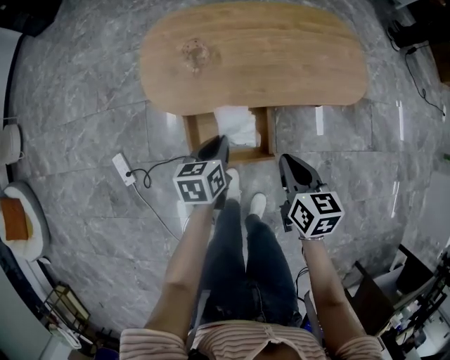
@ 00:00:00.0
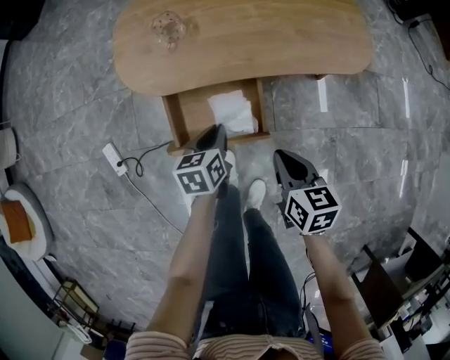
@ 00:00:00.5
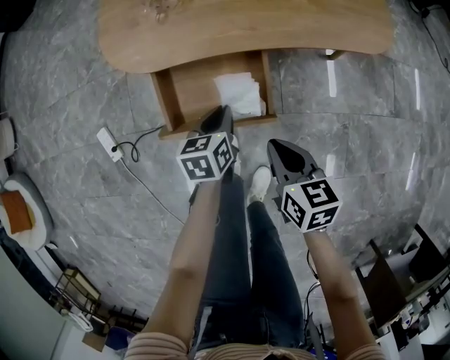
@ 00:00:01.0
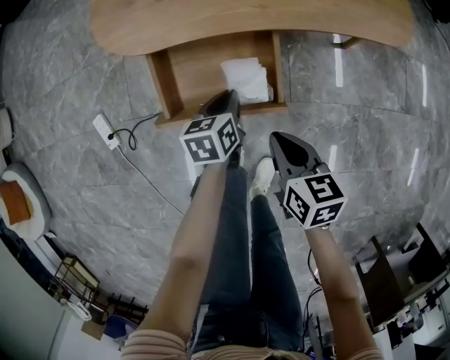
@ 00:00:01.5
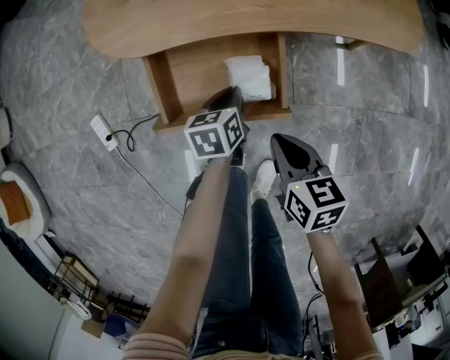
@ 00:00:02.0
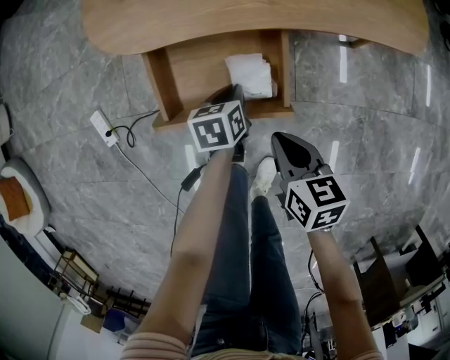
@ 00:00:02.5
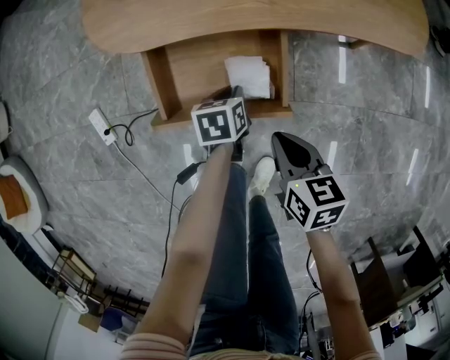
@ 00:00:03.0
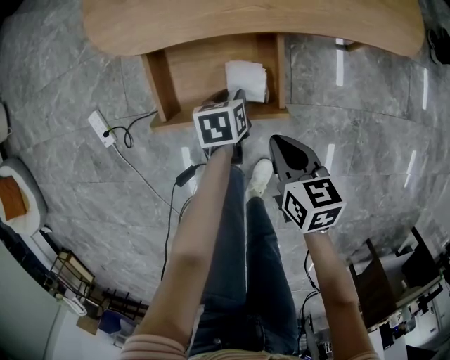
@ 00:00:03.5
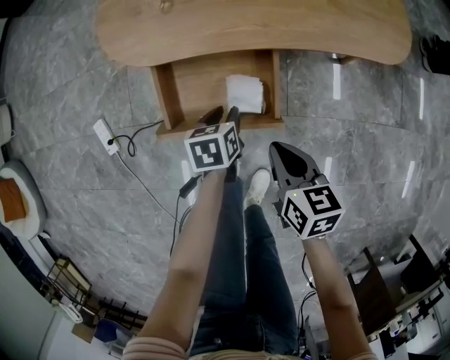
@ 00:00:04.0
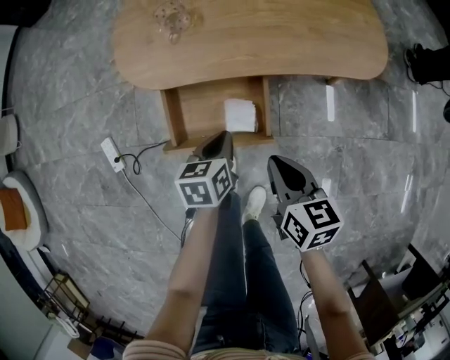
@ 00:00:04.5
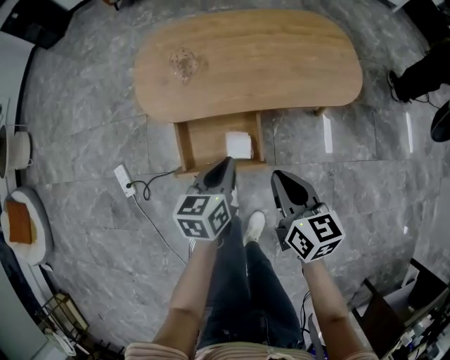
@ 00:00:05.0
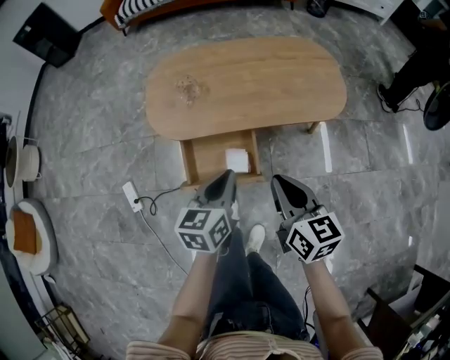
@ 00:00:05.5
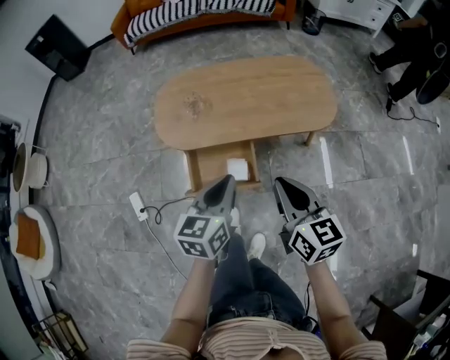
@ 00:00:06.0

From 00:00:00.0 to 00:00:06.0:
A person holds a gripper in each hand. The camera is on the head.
From 00:00:00.0 to 00:00:02.0: Both grippers travel together downward, about 25 cm.
From 00:00:02.0 to 00:00:04.0: There are only small adjustments of the grippers.
From 00:00:04.0 to 00:00:06.0: The grippers both shift upward by roughly 40 cm. The right gripper swivels approximately 30 degrees, while the left gripper tips its fingers upward by approximately 30 degrees, and closes up.

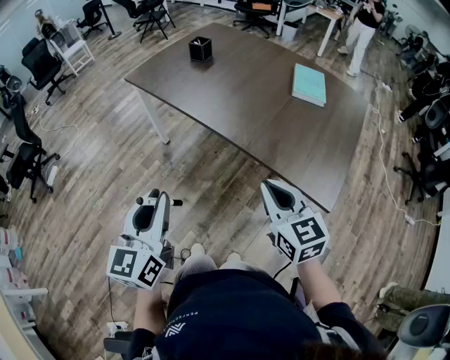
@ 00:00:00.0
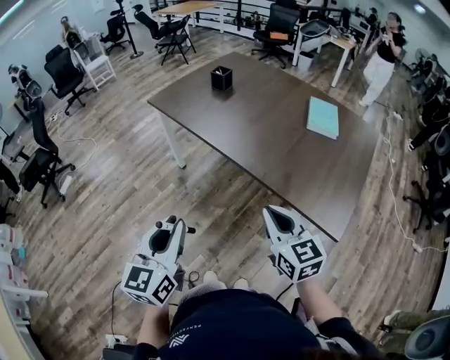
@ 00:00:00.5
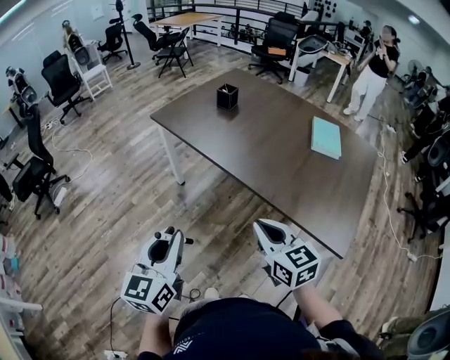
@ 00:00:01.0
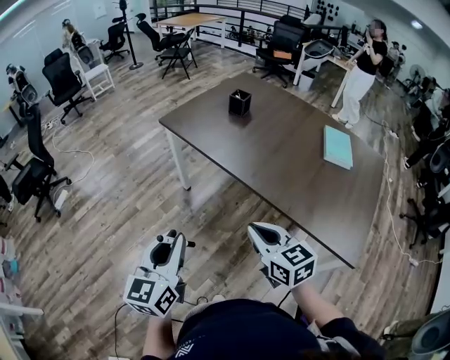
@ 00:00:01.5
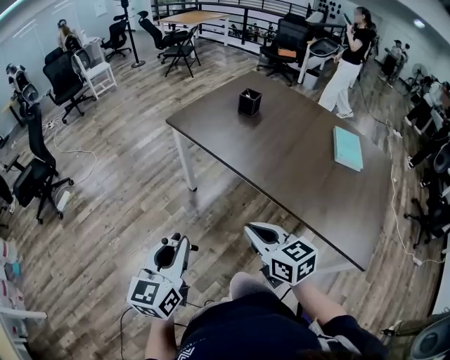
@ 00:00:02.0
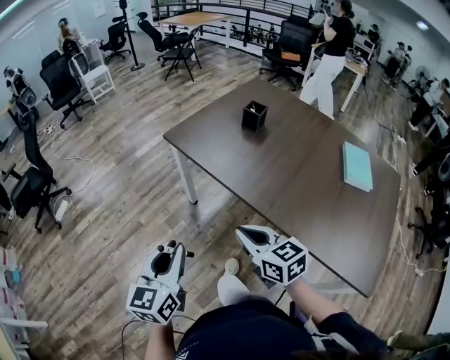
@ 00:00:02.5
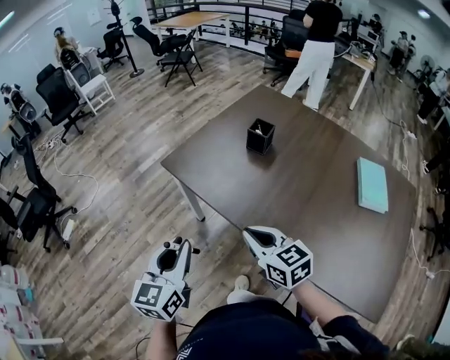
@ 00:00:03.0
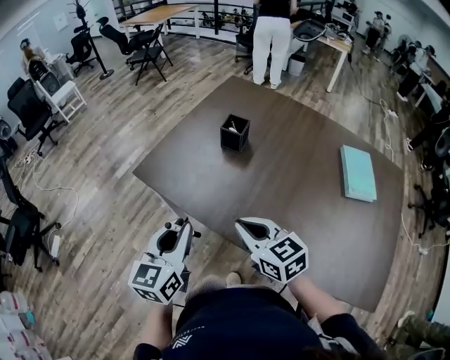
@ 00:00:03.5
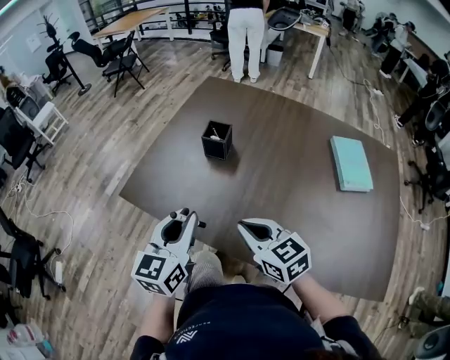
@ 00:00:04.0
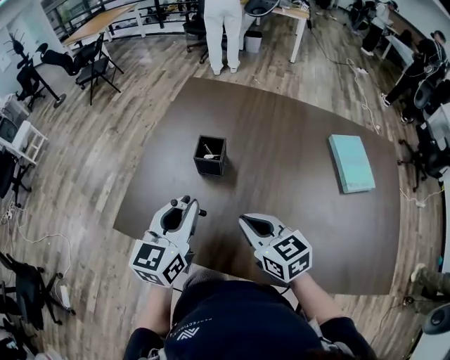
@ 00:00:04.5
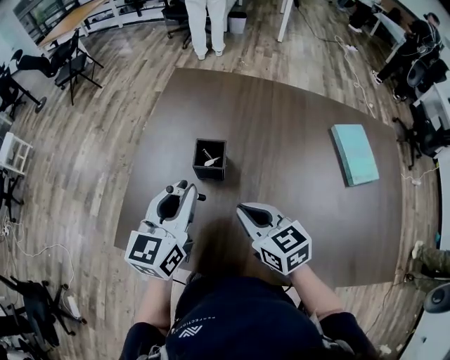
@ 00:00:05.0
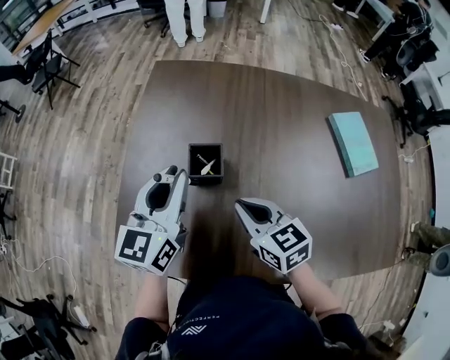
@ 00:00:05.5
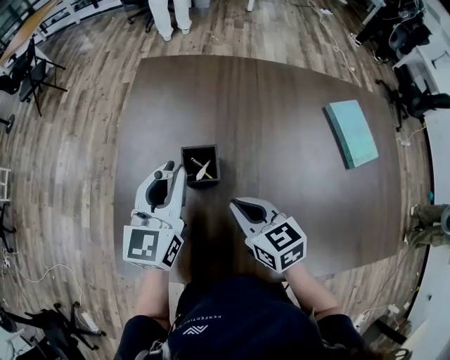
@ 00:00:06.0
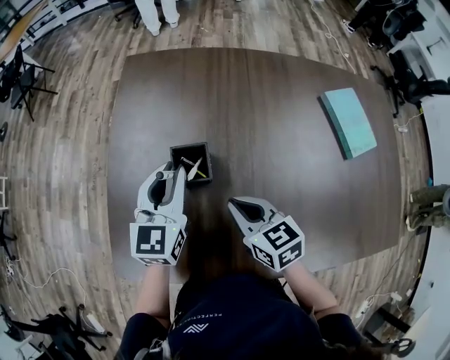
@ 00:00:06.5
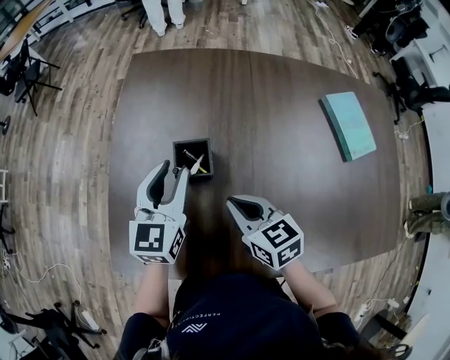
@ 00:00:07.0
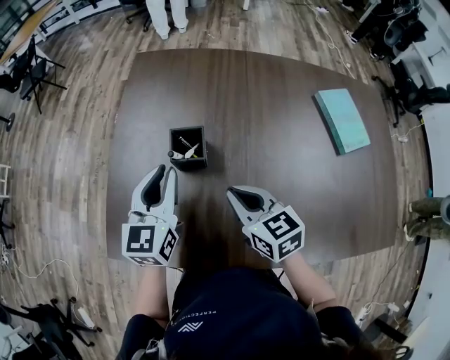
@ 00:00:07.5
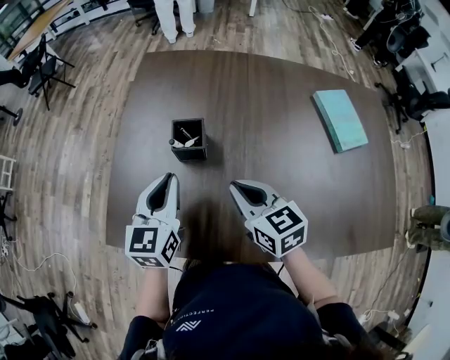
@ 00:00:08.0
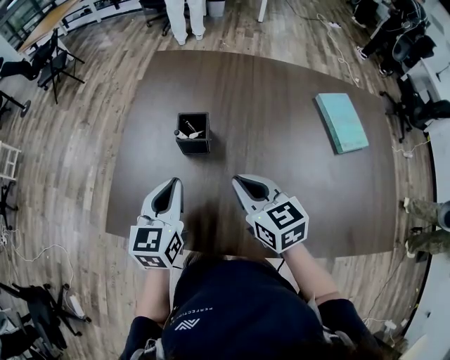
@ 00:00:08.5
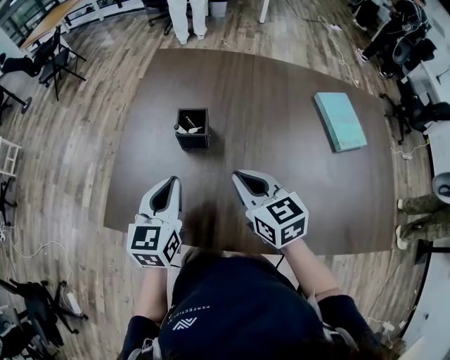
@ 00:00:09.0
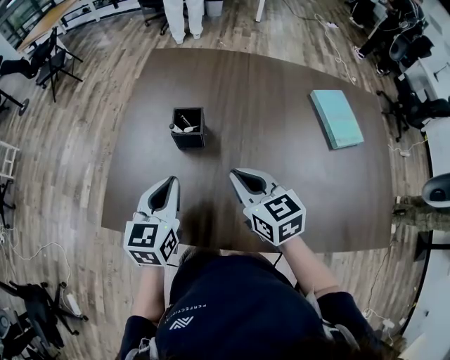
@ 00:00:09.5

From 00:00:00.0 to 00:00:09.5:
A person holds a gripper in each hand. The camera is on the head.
From 00:00:00.0 to 00:00:02.0: The two grippers go roughly 20 cm to the left and forward. The right gripper turns by some 20 degrees.
From 00:00:02.0 to 00:00:04.0: Both grippers move forward, roughly 35 cm. The left gripper rotates roughly 20 degrees.
From 00:00:04.0 to 00:00:05.5: Both grippers move forward, some 25 cm. The right gripper turns by approximately 20 degrees.
From 00:00:05.5 to 00:00:07.5: The left gripper moves downward, approximately 5 cm.
From 00:00:07.5 to 00:00:09.5: The right gripper changes place by roughly 5 cm. The left gripper travels backward by some 10 cm.

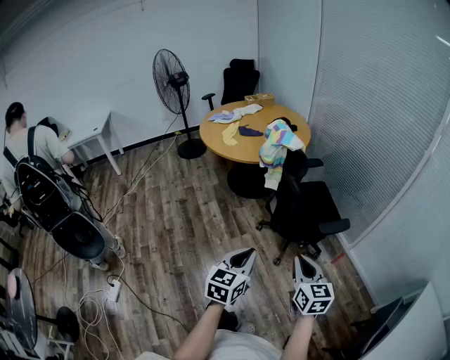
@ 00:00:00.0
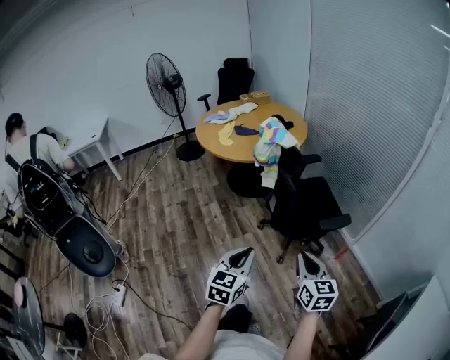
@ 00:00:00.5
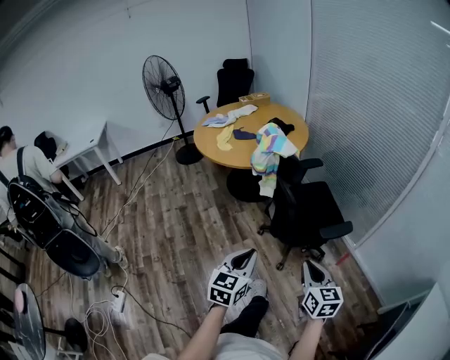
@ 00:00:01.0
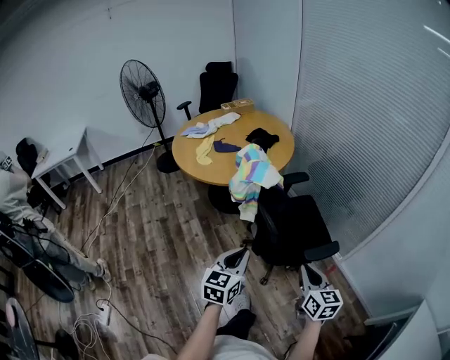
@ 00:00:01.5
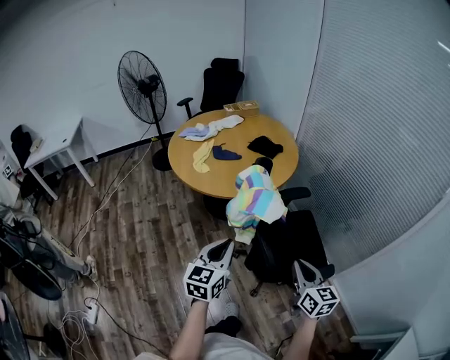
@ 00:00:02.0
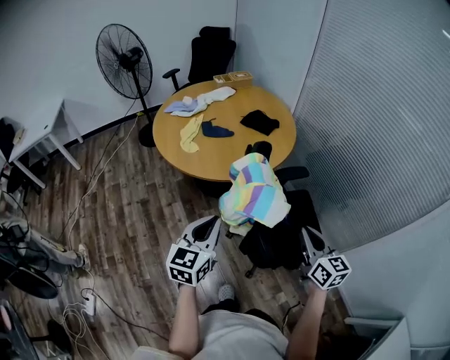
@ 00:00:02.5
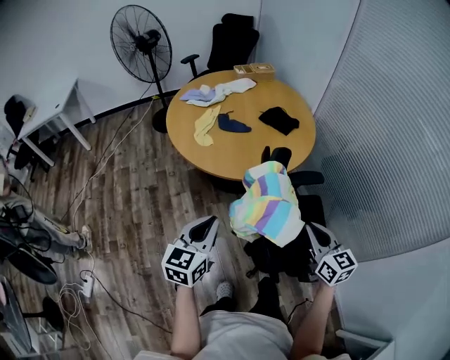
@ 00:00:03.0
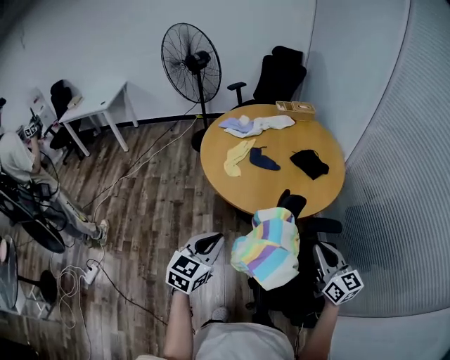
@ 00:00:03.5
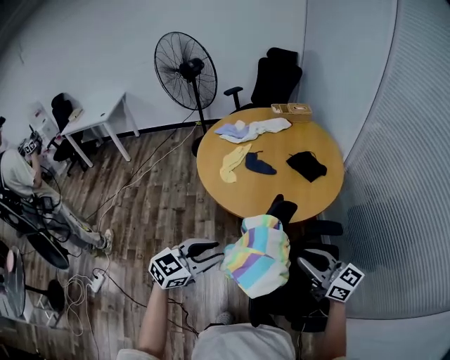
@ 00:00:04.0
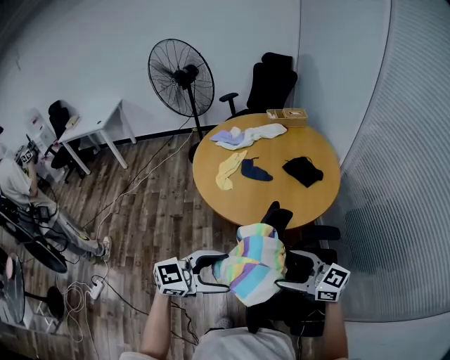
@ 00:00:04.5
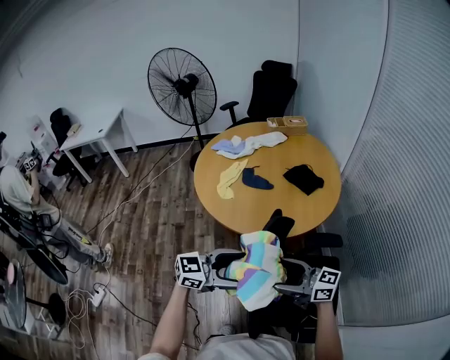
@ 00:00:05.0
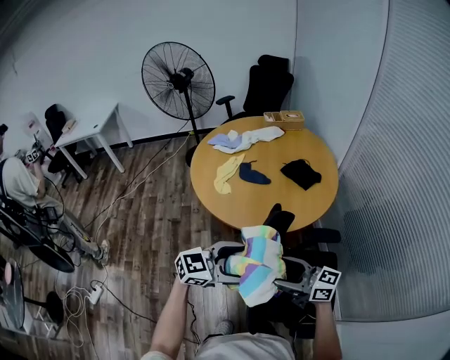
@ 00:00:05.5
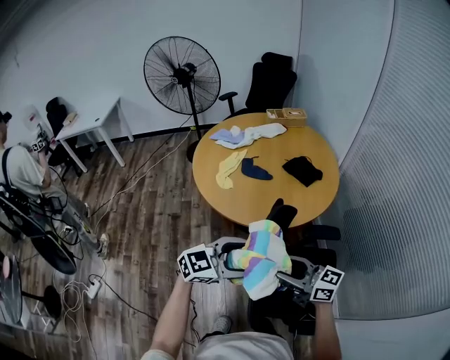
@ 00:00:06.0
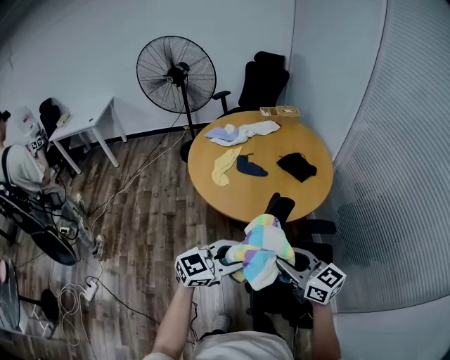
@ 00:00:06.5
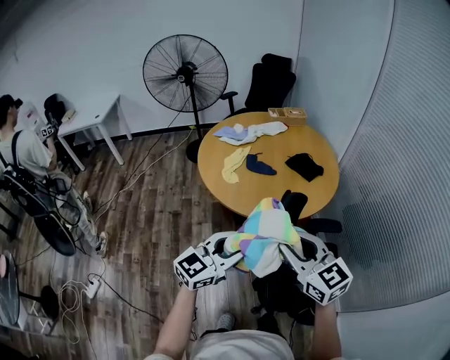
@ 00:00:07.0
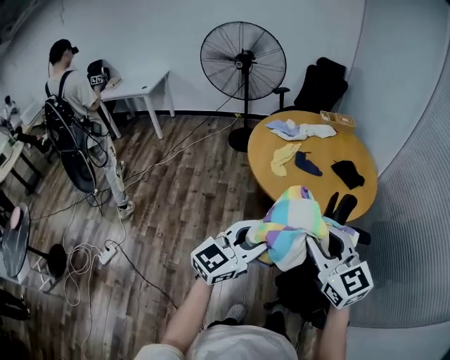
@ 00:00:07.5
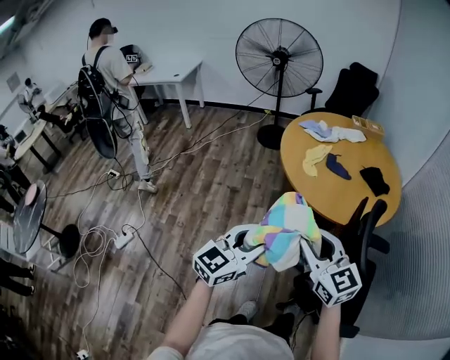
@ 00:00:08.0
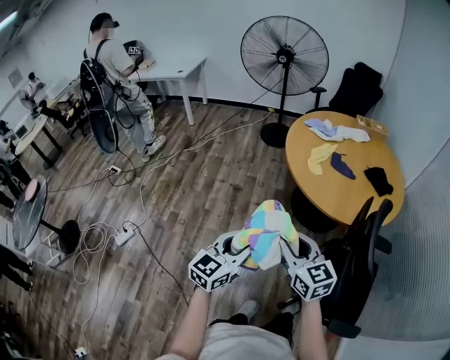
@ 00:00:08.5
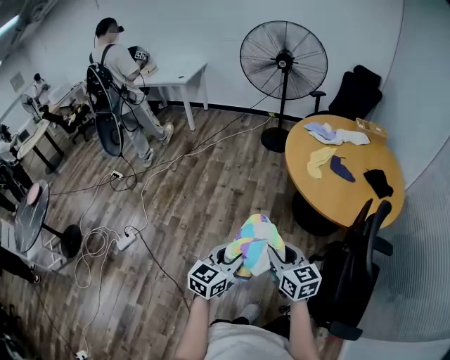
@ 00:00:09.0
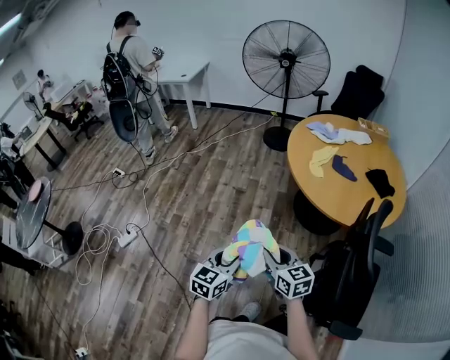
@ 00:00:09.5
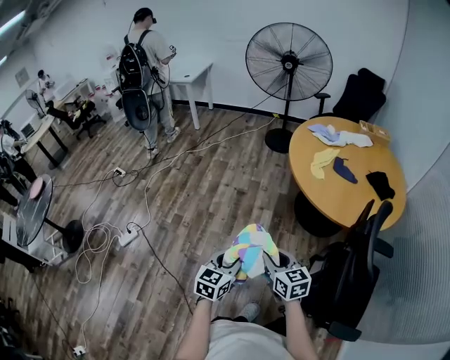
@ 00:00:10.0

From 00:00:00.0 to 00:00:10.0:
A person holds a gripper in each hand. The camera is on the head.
From 00:00:00.0 to 00:00:02.0: The two grippers go roughly 30 cm forward.
From 00:00:02.0 to 00:00:04.0: The left gripper moves forward, about 15 cm; the right gripper travels forward by about 25 cm, and rotates about 50 degrees.
From 00:00:04.0 to 00:00:06.0: The left gripper moves approximately 10 cm, swivels about 20 degrees, and opens its fingers. The right gripper moves approximately 5 cm, and opens its fingers.
From 00:00:06.0 to 00:00:08.0: The left gripper changes place by about 30 cm, swivels about 40 degrees, and closes. Meanwhile the right gripper ends up approximately 25 cm from where it was, and swivels about 30 degrees.
From 00:00:08.0 to 00:00:10.0: Both grippers move downward and to the left, about 20 cm. The left gripper changes its angle by roughly 30 degrees; the right gripper changes its angle by approximately 20 degrees.

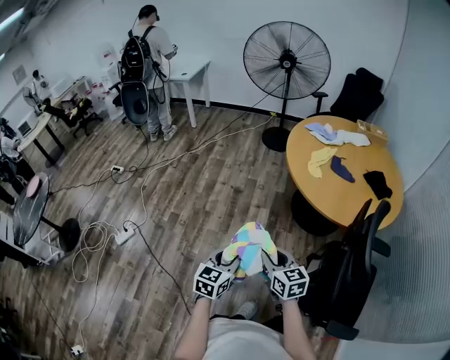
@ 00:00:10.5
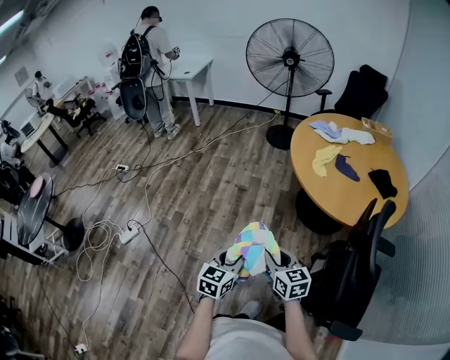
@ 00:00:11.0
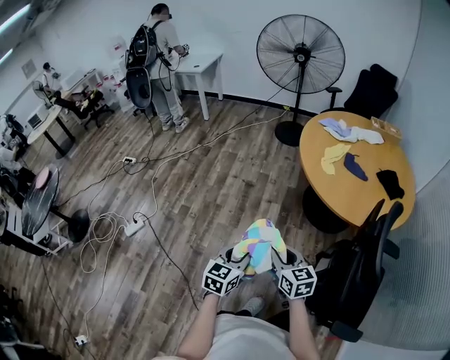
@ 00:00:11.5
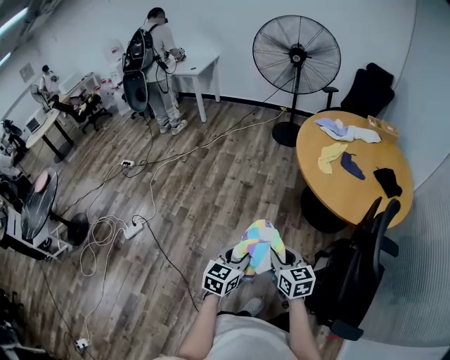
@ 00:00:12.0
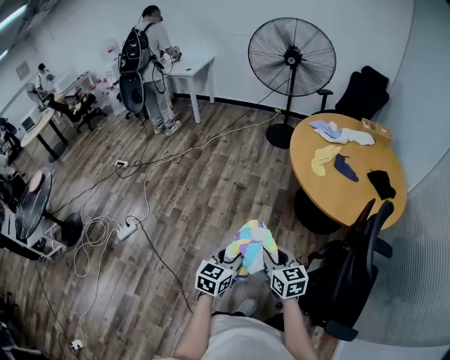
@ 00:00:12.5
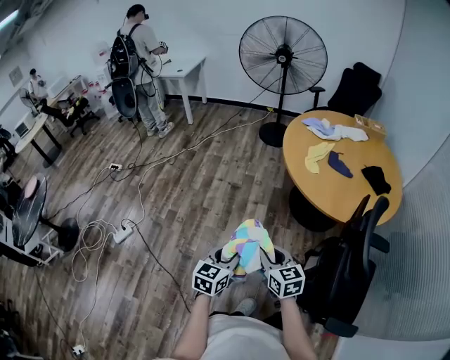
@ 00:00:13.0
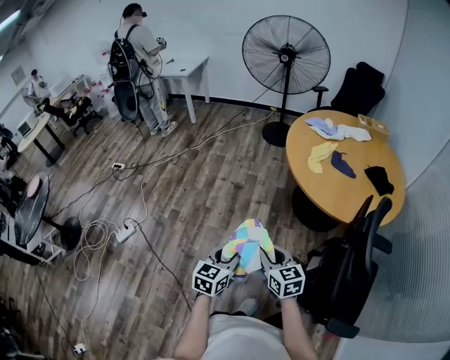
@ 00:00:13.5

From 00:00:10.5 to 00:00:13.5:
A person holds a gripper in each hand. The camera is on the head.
From 00:00:10.5 to 00:00:13.5: Both grippers stay put.
